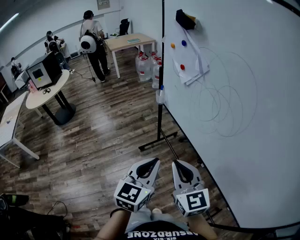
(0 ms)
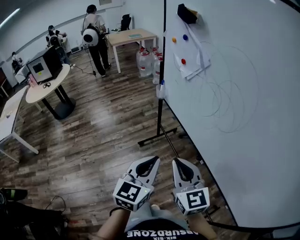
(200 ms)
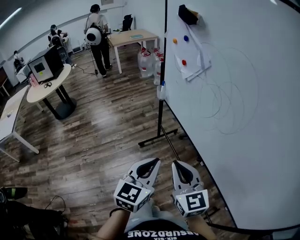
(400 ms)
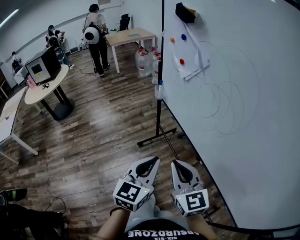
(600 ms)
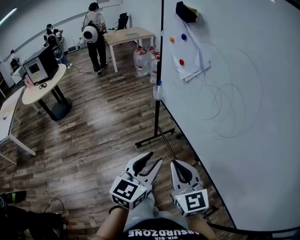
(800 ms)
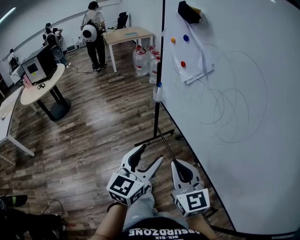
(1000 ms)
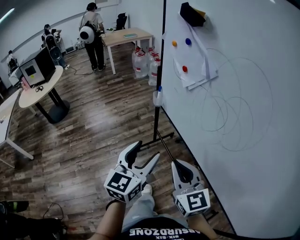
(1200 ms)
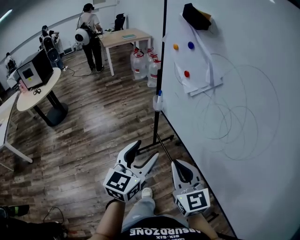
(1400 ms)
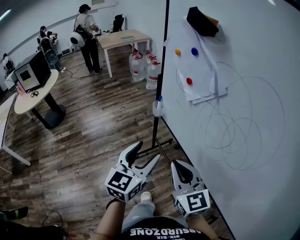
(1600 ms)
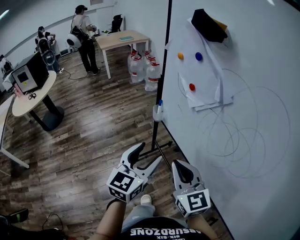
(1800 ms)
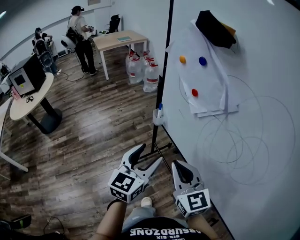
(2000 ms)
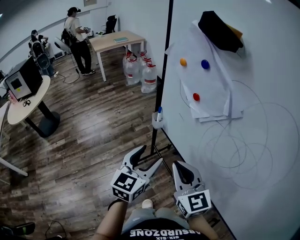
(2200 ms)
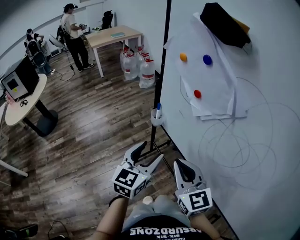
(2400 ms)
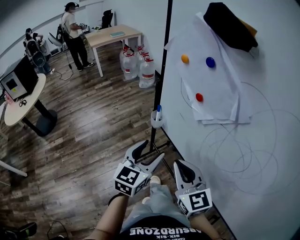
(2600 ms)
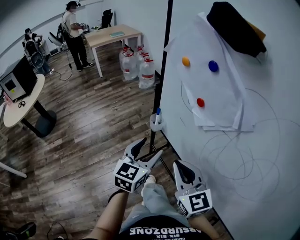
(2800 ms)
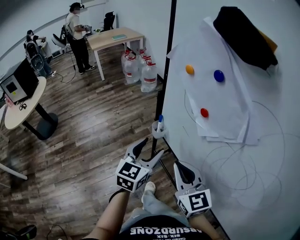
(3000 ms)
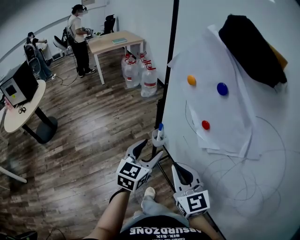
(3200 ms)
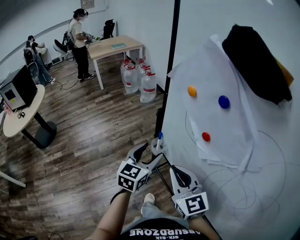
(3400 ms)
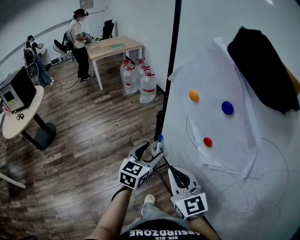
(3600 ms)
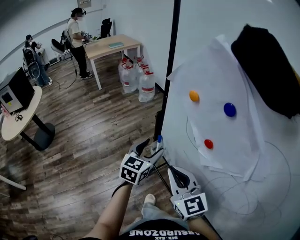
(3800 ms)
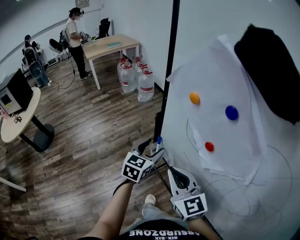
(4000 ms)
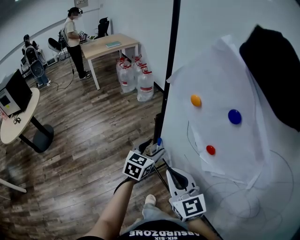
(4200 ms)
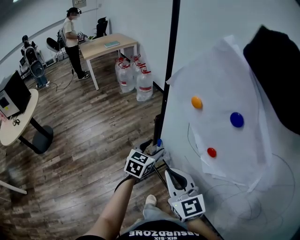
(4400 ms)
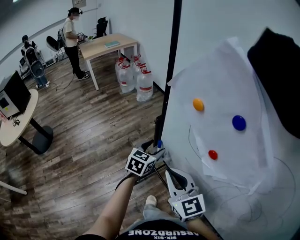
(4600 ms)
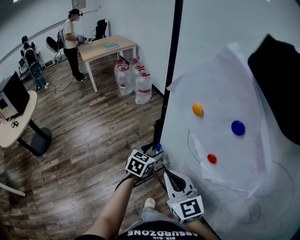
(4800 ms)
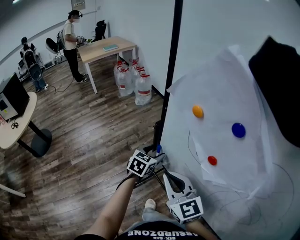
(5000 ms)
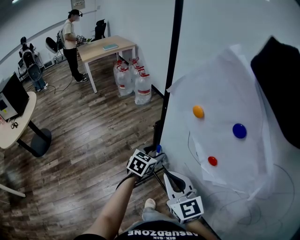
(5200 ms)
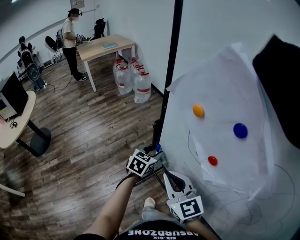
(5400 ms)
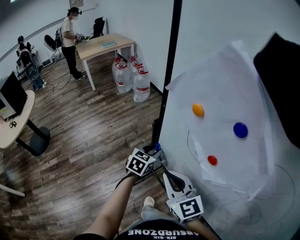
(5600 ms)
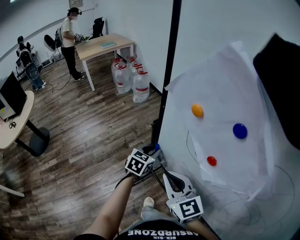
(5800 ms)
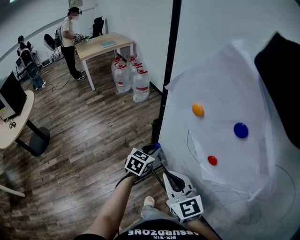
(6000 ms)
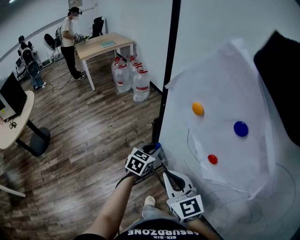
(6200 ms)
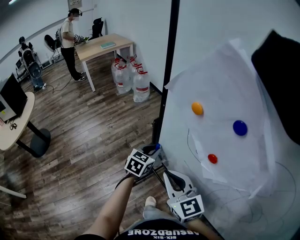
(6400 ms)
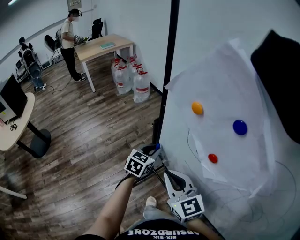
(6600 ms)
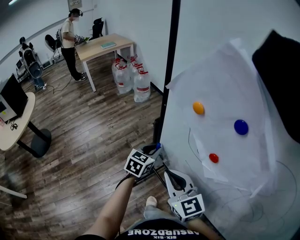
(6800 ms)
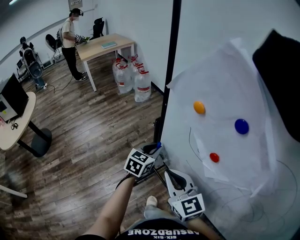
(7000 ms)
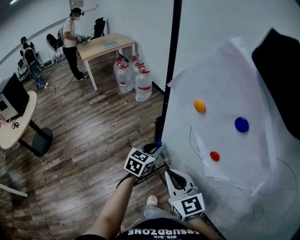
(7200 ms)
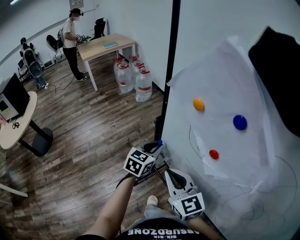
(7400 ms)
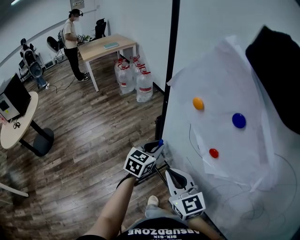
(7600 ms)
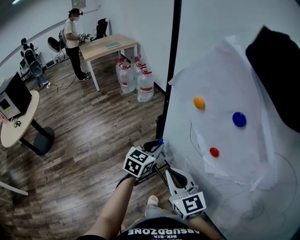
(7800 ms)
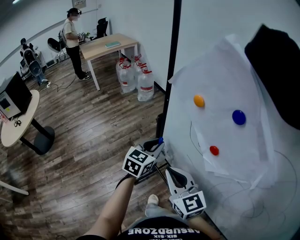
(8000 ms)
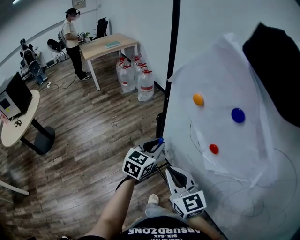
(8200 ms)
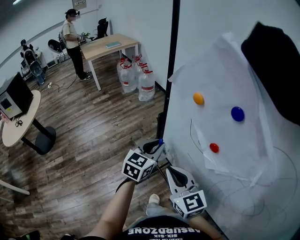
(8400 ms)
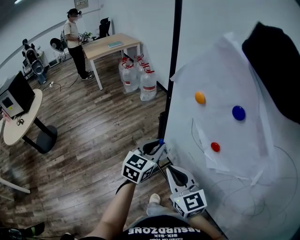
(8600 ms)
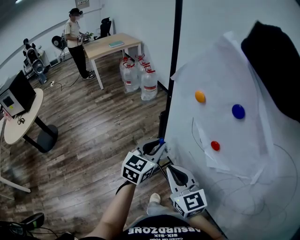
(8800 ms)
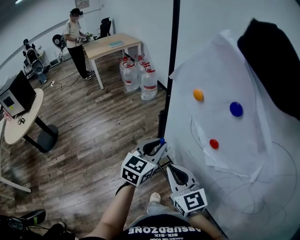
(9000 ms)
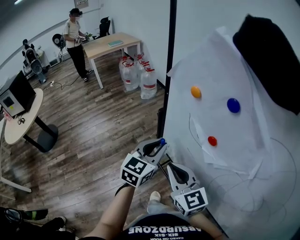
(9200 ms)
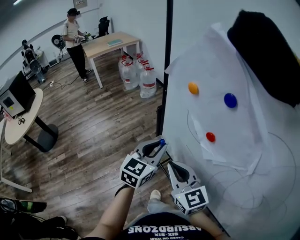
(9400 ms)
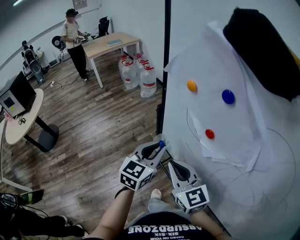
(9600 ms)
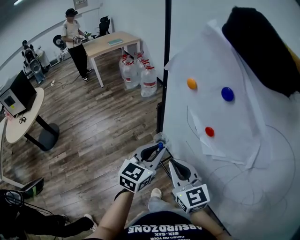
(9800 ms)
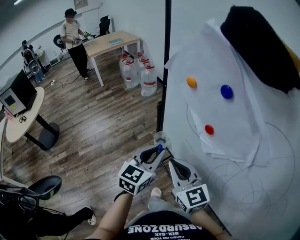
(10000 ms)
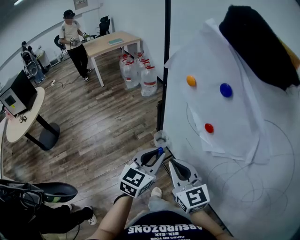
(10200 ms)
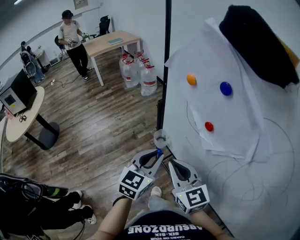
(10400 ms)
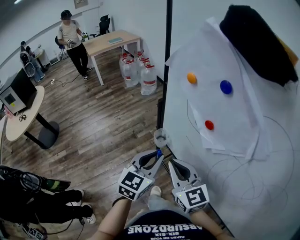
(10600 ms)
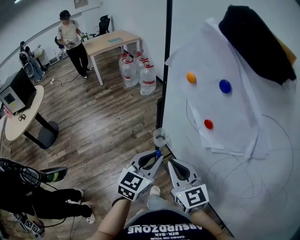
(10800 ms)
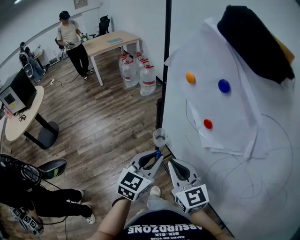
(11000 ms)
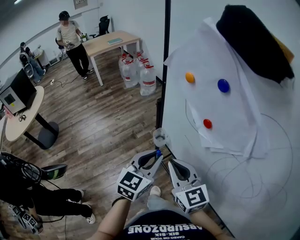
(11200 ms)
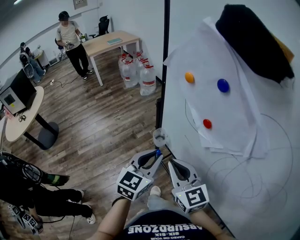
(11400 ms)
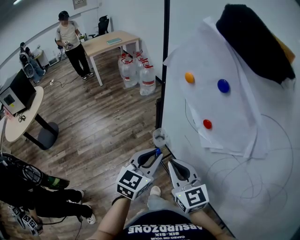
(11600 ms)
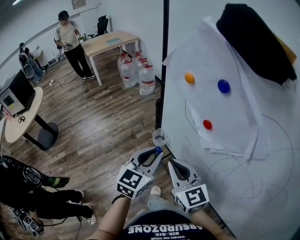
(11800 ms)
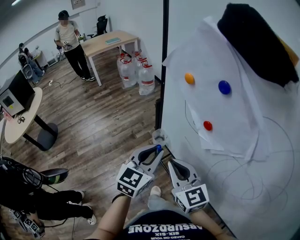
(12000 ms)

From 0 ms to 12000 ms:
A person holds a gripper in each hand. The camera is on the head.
From 0 ms to 1600 ms: Both grippers move forward, some 20 cm. The left gripper opens up.
From 1600 ms to 3000 ms: Both grippers move forward, some 20 cm.
From 3000 ms to 4400 ms: The left gripper goes roughly 20 cm forward and downward. Meanwhile the right gripper heads forward, covering approximately 10 cm.
From 4400 ms to 6000 ms: The left gripper closes.
From 6000 ms to 7600 ms: The left gripper goes about 5 cm upward.
From 7600 ms to 9000 ms: The left gripper moves upward and backward, roughly 10 cm.
From 9000 ms to 10400 ms: The left gripper moves backward, some 10 cm.
From 10400 ms to 12000 ms: The grippers make only small movements.

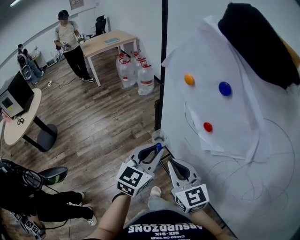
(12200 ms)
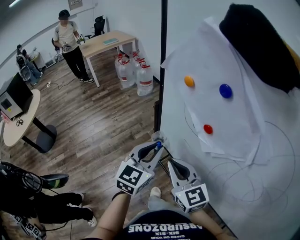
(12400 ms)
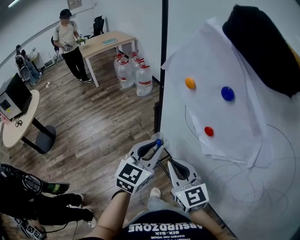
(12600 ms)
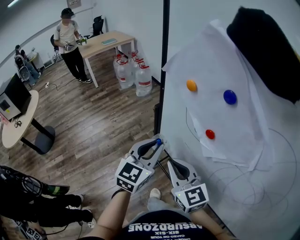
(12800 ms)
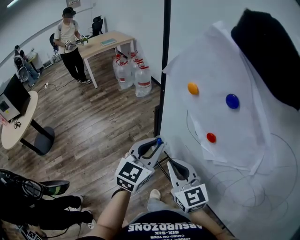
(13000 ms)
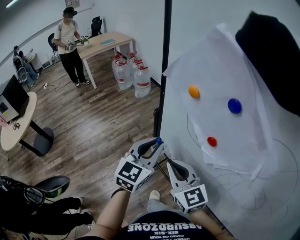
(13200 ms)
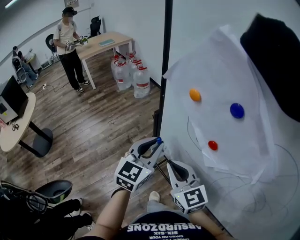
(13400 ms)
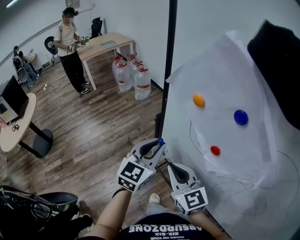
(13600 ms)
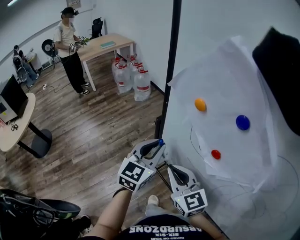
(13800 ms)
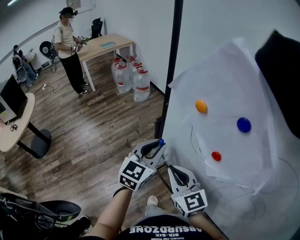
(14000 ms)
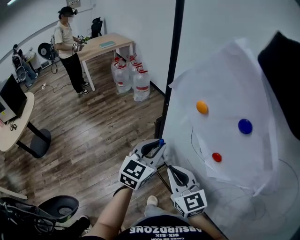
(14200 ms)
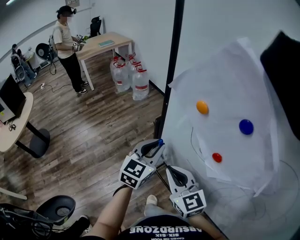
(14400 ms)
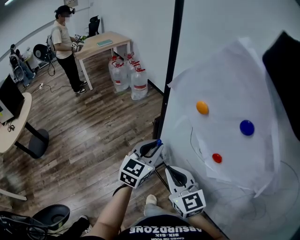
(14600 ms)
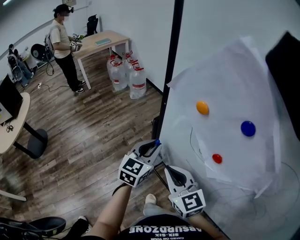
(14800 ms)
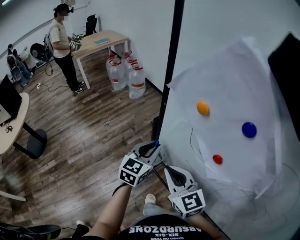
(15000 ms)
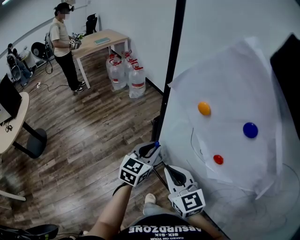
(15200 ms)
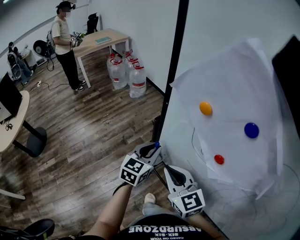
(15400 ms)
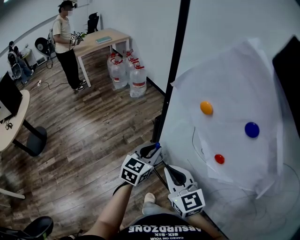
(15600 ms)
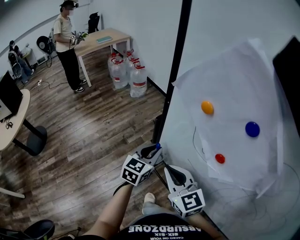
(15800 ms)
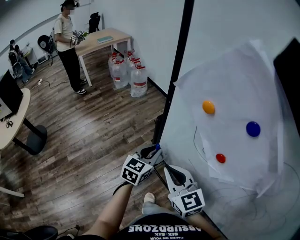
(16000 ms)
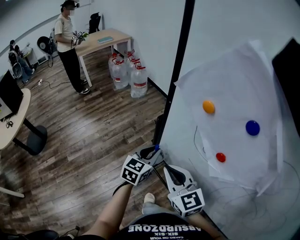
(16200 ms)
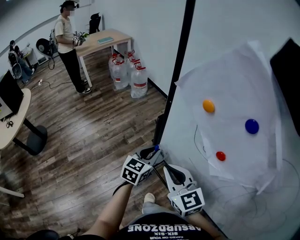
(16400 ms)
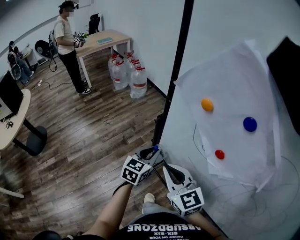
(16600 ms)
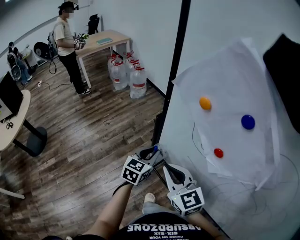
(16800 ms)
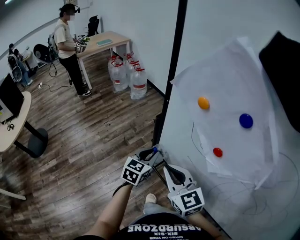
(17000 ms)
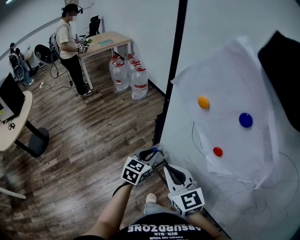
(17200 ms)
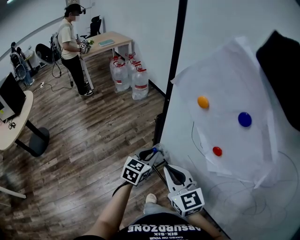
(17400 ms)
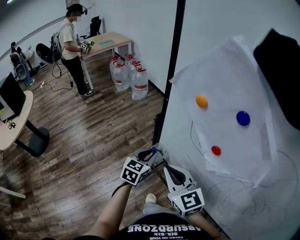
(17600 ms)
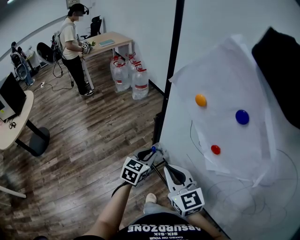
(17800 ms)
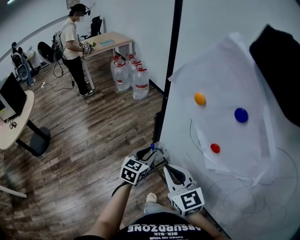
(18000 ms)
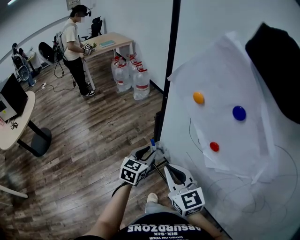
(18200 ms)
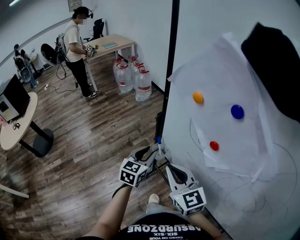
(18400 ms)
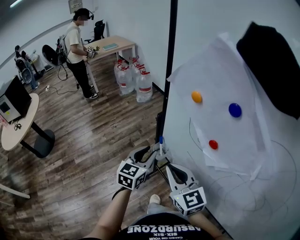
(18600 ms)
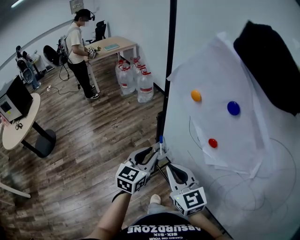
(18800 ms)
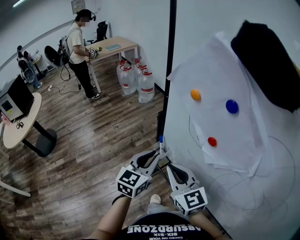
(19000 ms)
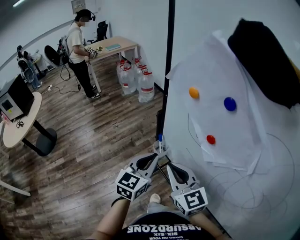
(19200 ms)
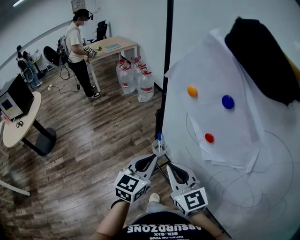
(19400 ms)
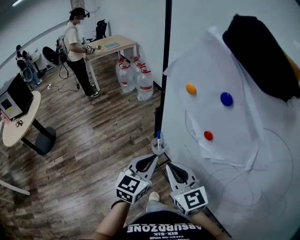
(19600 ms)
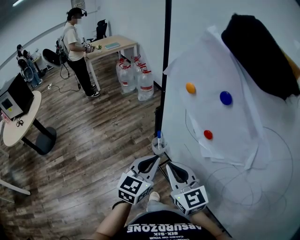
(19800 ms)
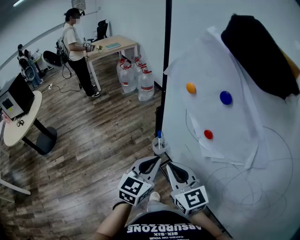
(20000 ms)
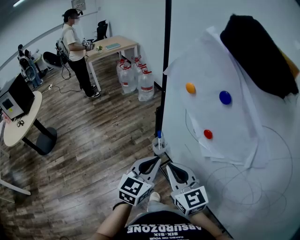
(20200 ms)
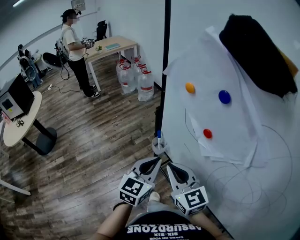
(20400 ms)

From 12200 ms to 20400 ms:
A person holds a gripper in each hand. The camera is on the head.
From 12200 ms to 13800 ms: The right gripper is displaced forward by roughly 5 cm; the left gripper travels forward by some 10 cm.
From 13800 ms to 15400 ms: The left gripper goes about 10 cm downward.
From 15400 ms to 17200 ms: The left gripper shifts by approximately 5 cm.
From 17200 ms to 18800 ms: The left gripper travels upward and backward by about 10 cm.
From 18800 ms to 20400 ms: The left gripper is displaced backward by about 5 cm, and closes its fingers.

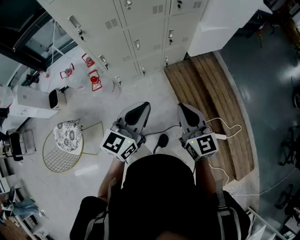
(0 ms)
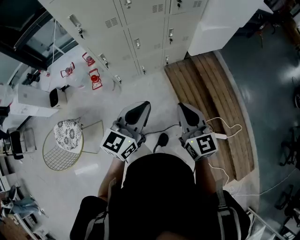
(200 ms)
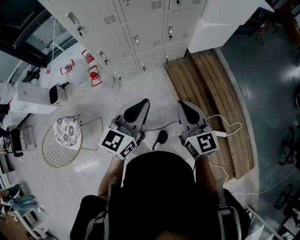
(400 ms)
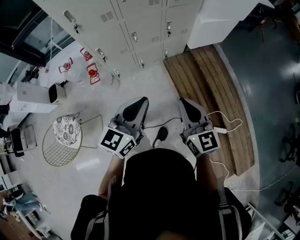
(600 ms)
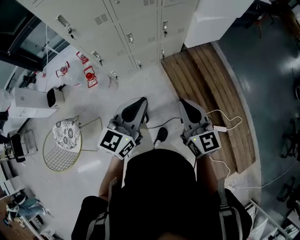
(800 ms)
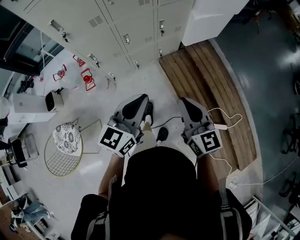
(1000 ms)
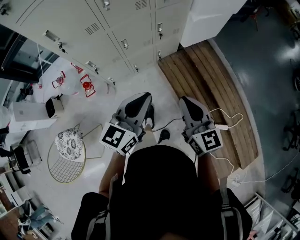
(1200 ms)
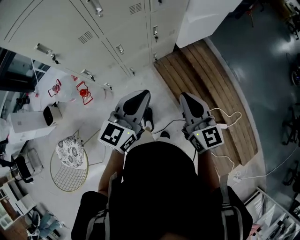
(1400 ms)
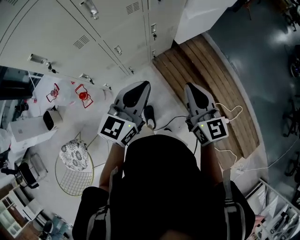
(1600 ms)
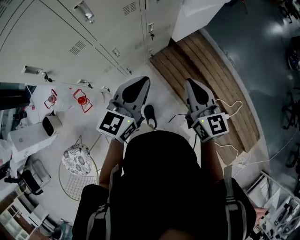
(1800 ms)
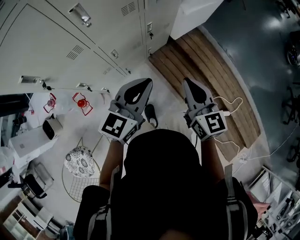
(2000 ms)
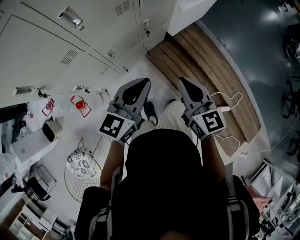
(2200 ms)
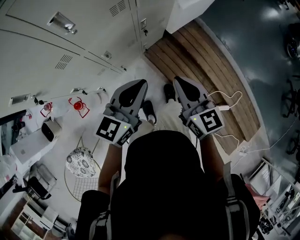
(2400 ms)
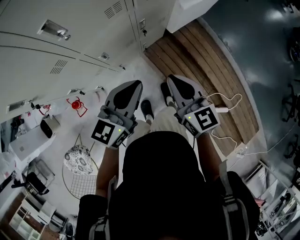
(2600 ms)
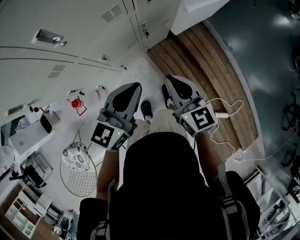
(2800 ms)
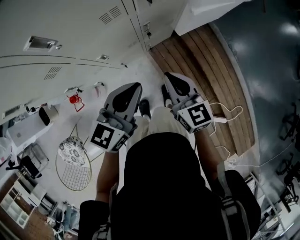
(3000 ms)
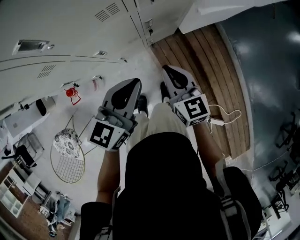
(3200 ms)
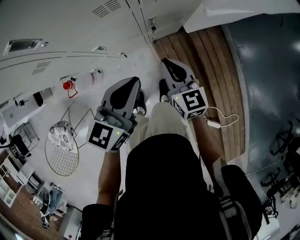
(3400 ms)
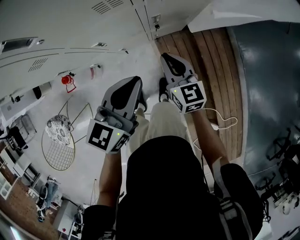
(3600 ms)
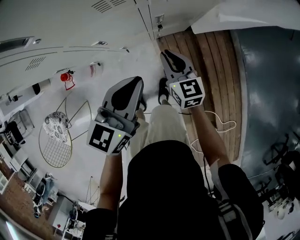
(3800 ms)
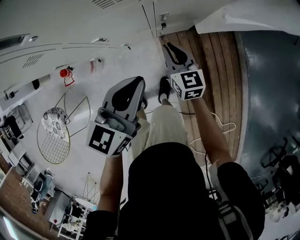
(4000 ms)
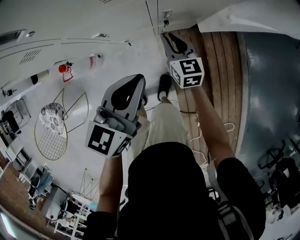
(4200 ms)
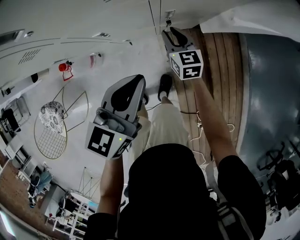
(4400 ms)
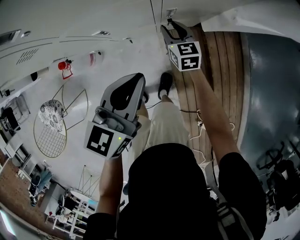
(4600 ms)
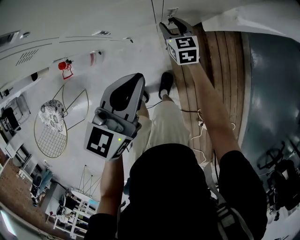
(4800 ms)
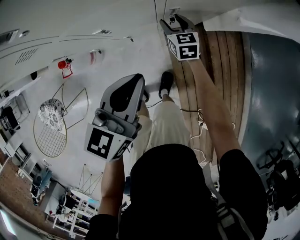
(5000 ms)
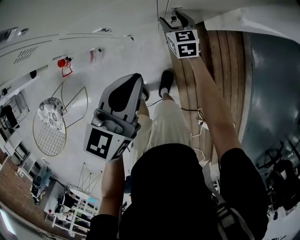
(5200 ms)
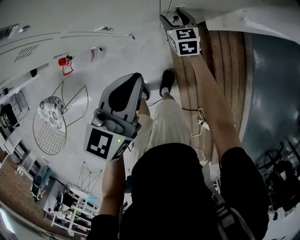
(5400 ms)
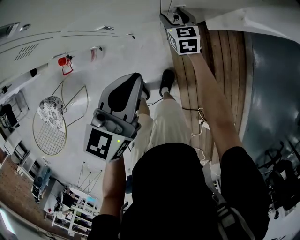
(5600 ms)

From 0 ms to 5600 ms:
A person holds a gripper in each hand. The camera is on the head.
From 0 ms to 1400 ms: The two grippers go about 15 cm forward.
From 1400 ms to 2800 ms: The two grippers go some 20 cm forward.
From 2800 ms to 4200 ms: The right gripper is displaced downward and forward by some 30 cm; the left gripper shifts approximately 10 cm downward and forward, and rotates roughly 20 degrees.
From 4200 ms to 5600 ms: The right gripper goes approximately 10 cm forward and downward, and opens up.
